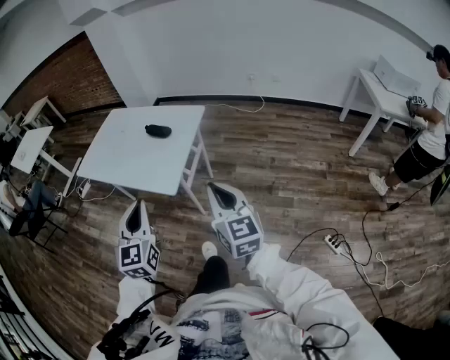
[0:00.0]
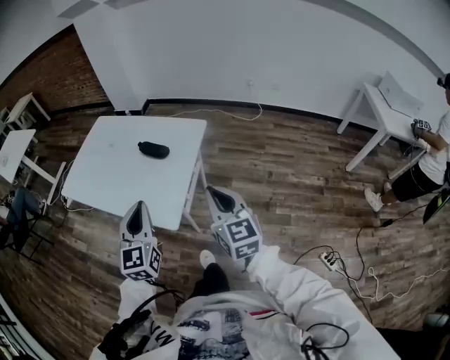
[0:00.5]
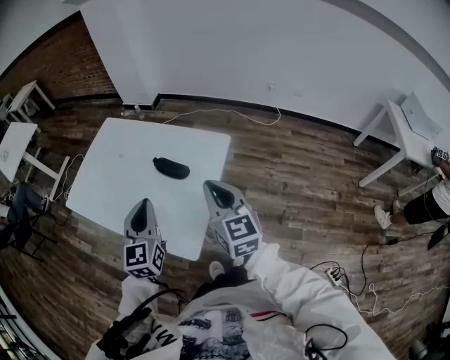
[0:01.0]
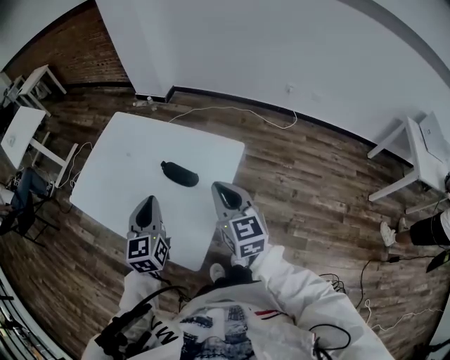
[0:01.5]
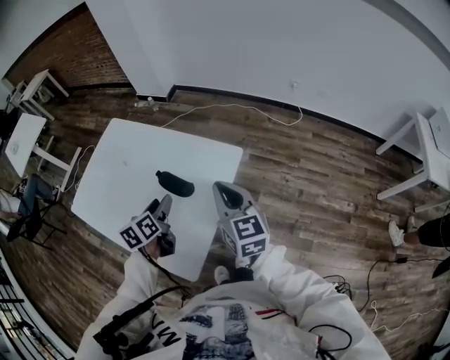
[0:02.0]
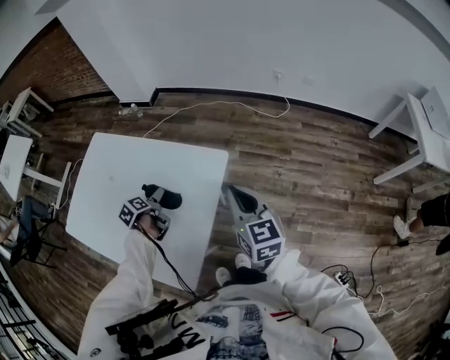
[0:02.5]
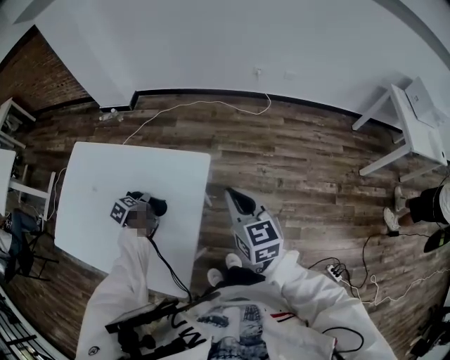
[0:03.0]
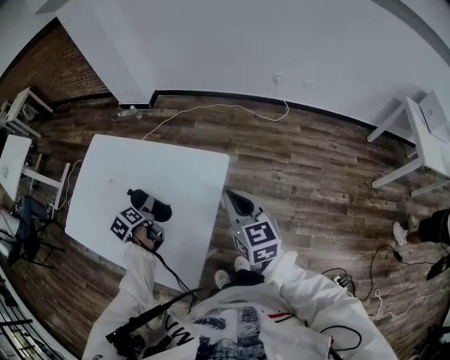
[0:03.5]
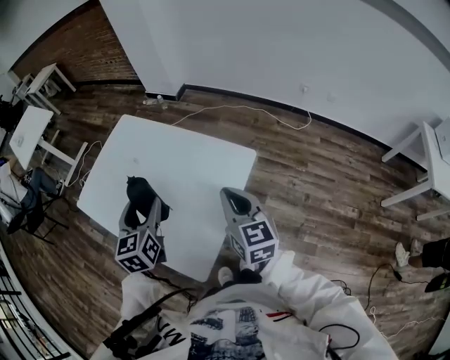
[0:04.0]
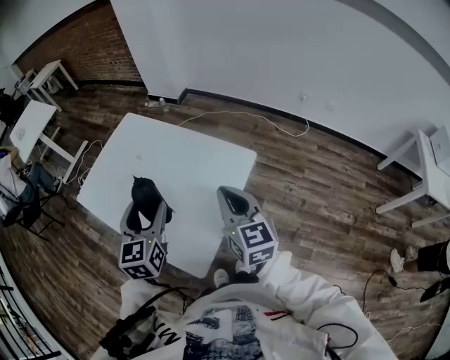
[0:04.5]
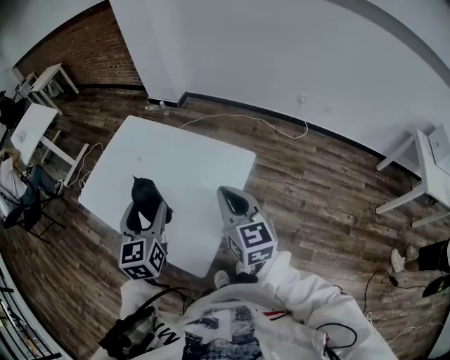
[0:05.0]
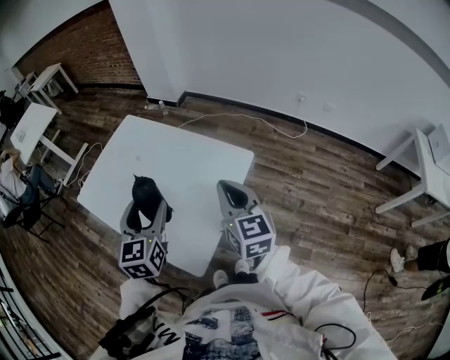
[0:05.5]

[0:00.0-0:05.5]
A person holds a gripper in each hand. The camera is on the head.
0:00.0 to 0:02.0: The pair of grippers is taken forward, some 50 cm. The left gripper rolls counterclockwise, seen from behind, by roughly 40 degrees, and opens its fingers.
0:02.0 to 0:03.5: The left gripper heads downward and forward, covering about 10 cm, and rotates approximately 20 degrees. The right gripper heads to the right, covering roughly 5 cm.
0:03.5 to 0:05.5: The right gripper heads to the left and upward, covering approximately 15 cm. Meanwhile the left gripper shifts approximately 25 cm upward and backward, and twists about 40 degrees clockwise, seen from behind.

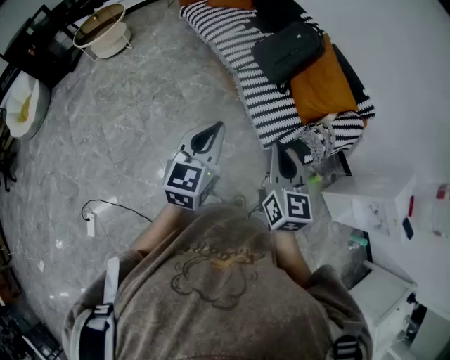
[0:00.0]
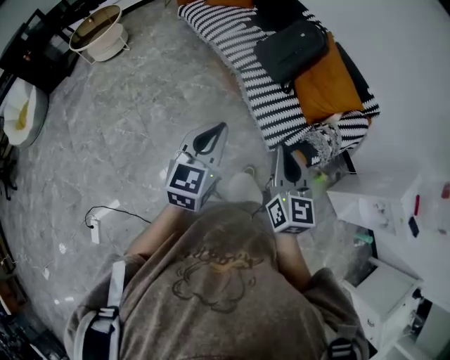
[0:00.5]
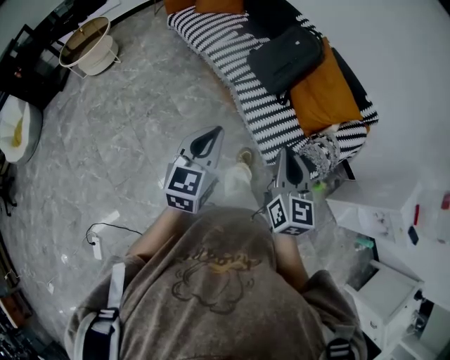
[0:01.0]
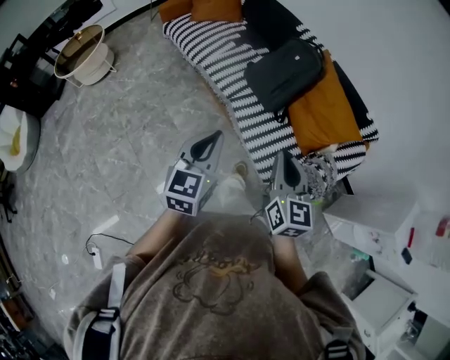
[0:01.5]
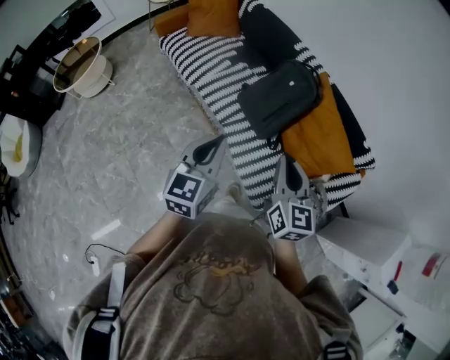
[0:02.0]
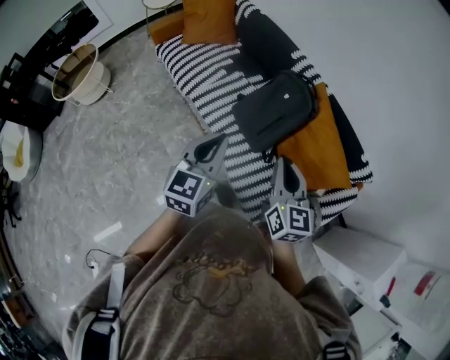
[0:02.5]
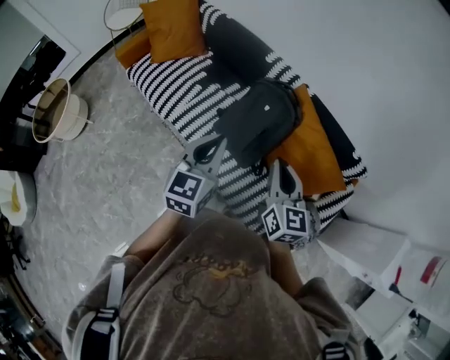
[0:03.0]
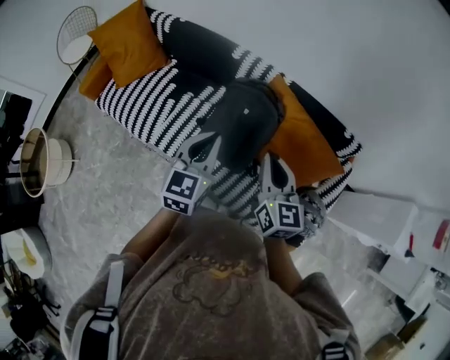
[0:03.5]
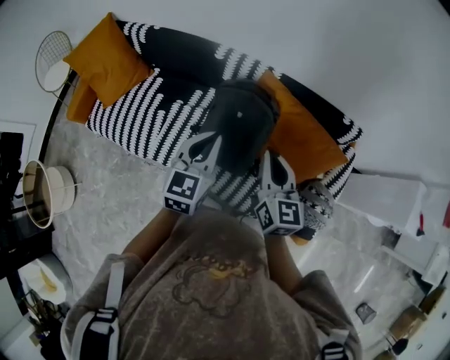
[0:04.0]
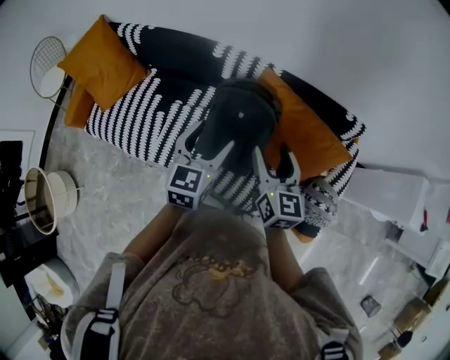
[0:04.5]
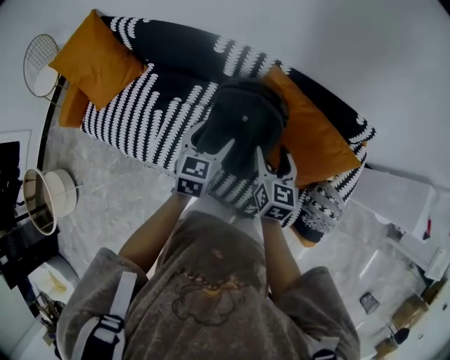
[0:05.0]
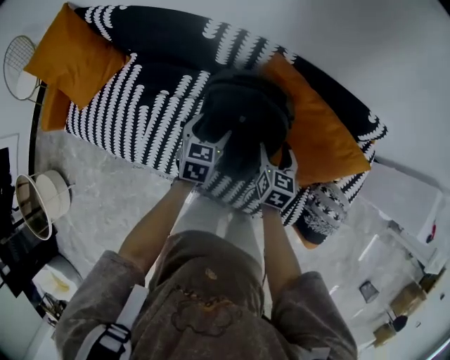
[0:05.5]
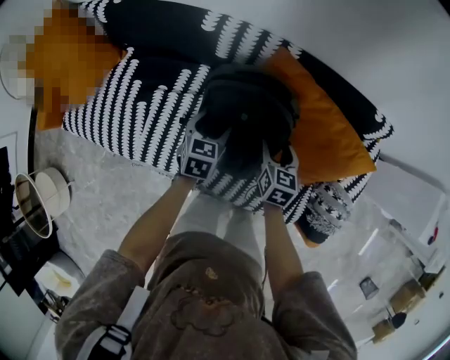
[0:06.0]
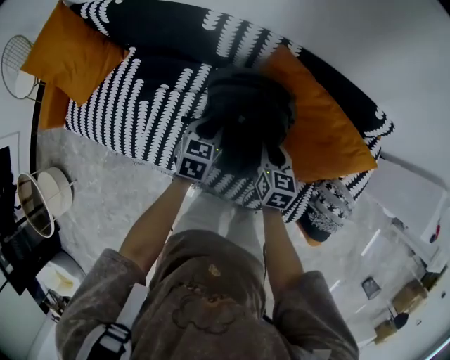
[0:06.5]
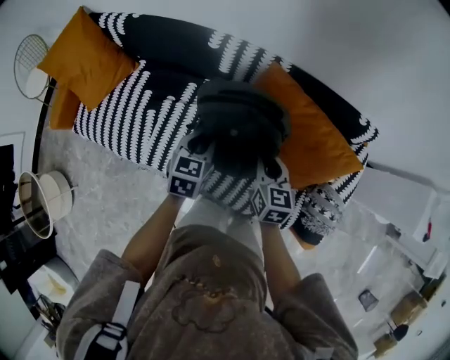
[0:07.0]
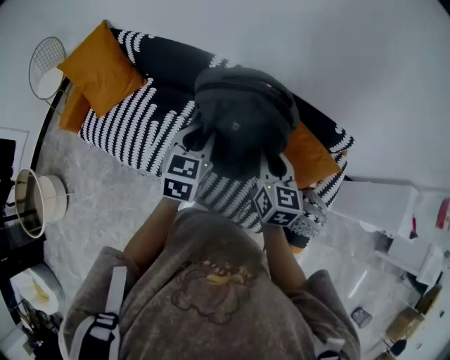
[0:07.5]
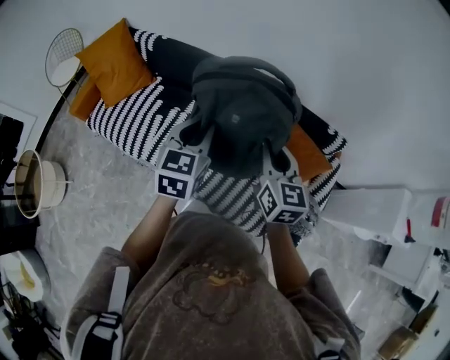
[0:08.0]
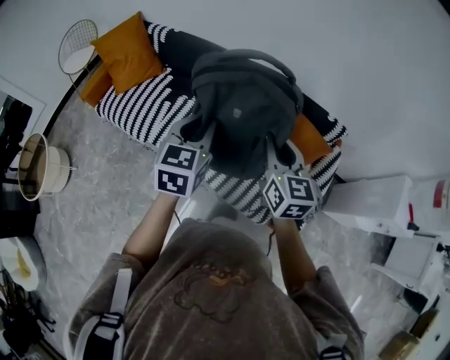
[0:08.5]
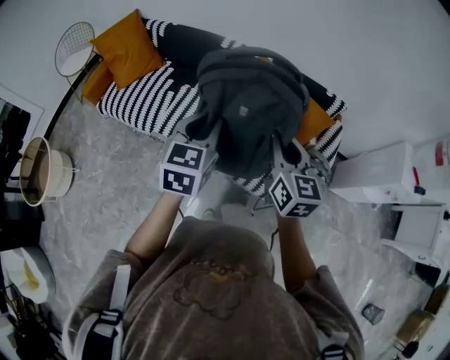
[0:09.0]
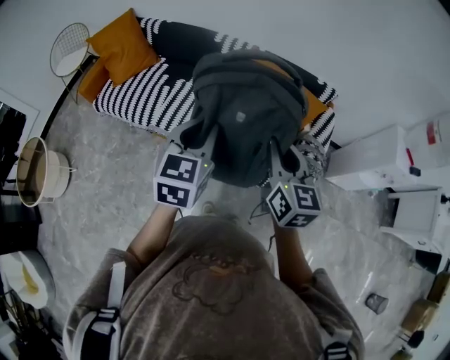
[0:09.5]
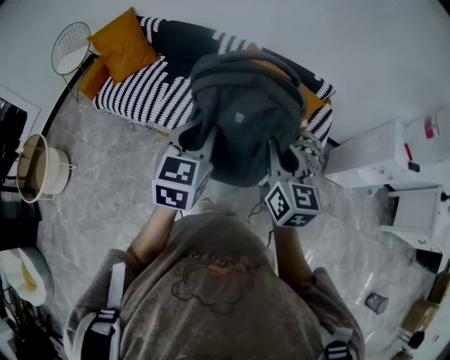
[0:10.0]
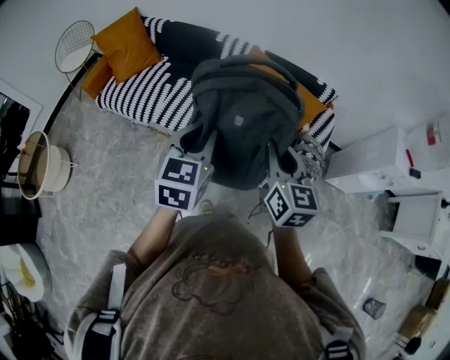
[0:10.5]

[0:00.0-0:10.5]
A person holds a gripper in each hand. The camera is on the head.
0:00.0 to 0:02.0: The two grippers go about 35 cm forward.
0:02.0 to 0:04.0: The left gripper changes place by approximately 35 cm, and turns by approximately 30 degrees, while the right gripper shifts by some 30 cm, and swivels some 30 degrees.
0:04.0 to 0:06.5: The grippers both shift downward by approximately 30 cm. The left gripper rotates roughly 30 degrees, and opens, then closes again. The right gripper swivels some 30 degrees, and opens and closes again.
0:06.5 to 0:08.5: Both grippers travel together upward and backward, approximately 40 cm. The right gripper changes its angle by roughly 30 degrees, while the left gripper rotates approximately 30 degrees.
0:08.5 to 0:10.5: Both grippers move backward, roughly 25 cm.

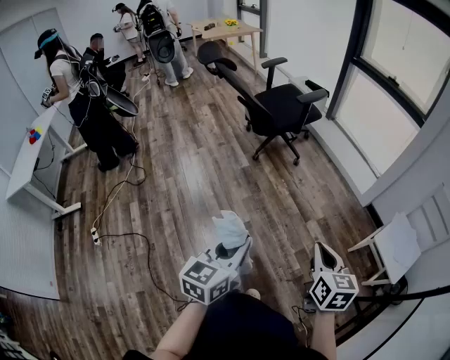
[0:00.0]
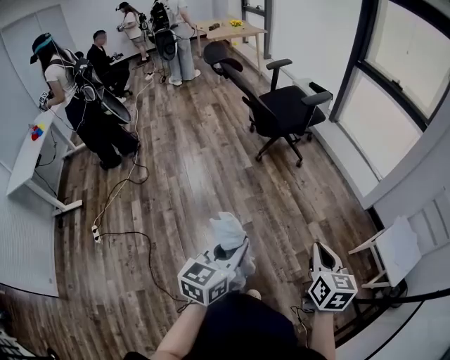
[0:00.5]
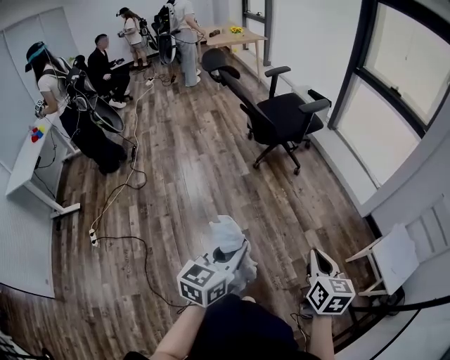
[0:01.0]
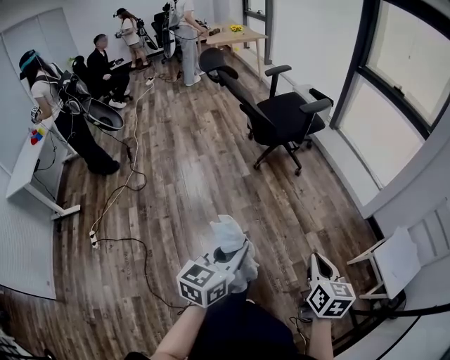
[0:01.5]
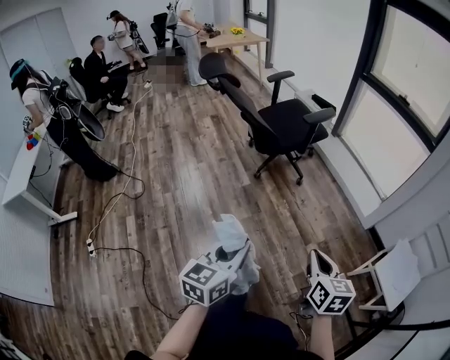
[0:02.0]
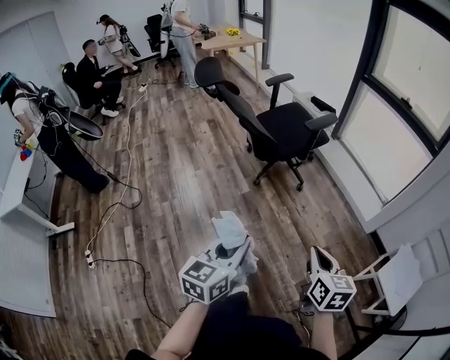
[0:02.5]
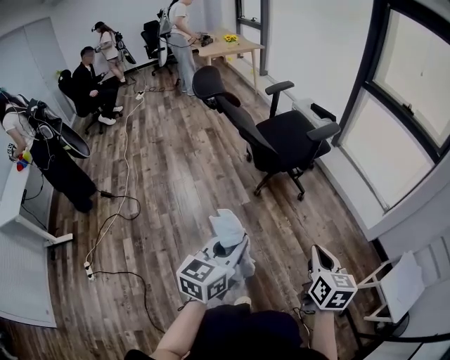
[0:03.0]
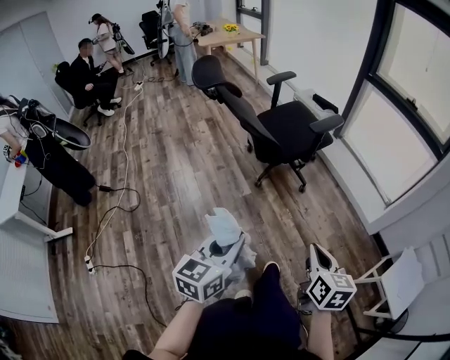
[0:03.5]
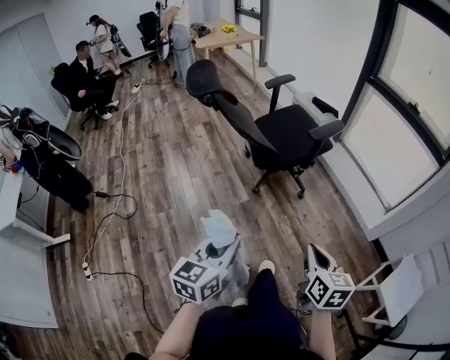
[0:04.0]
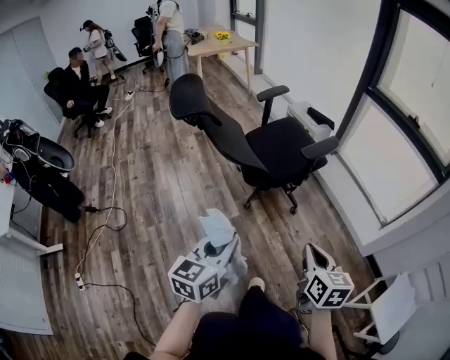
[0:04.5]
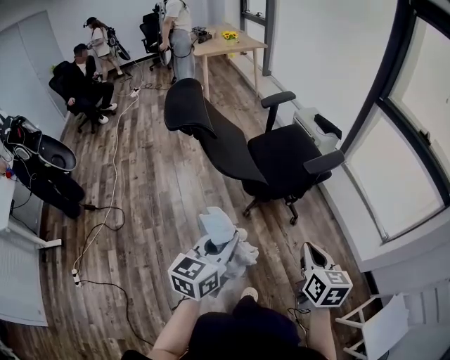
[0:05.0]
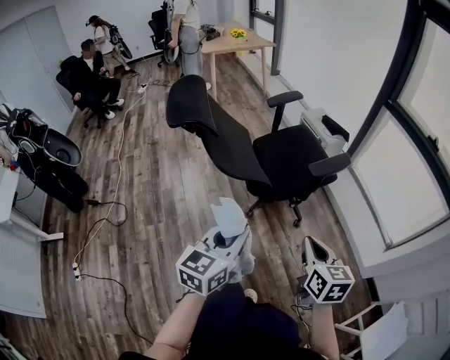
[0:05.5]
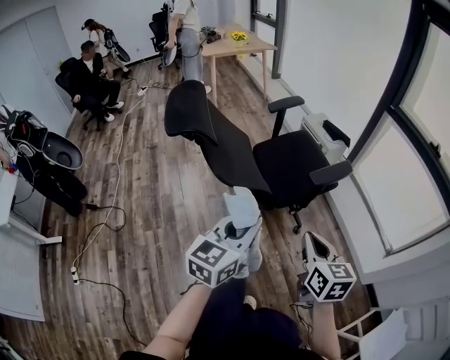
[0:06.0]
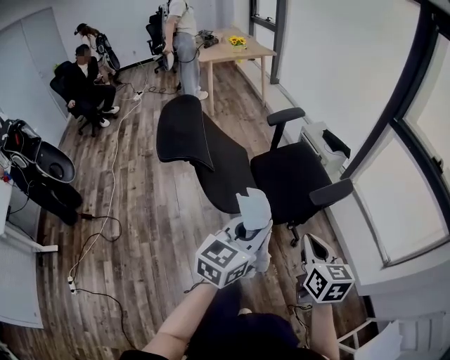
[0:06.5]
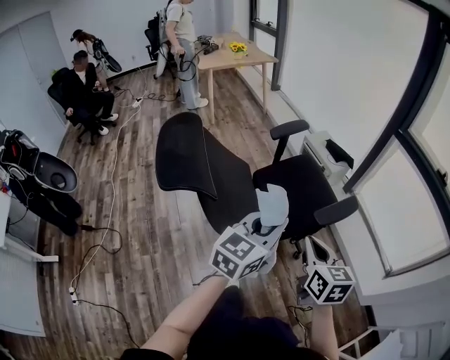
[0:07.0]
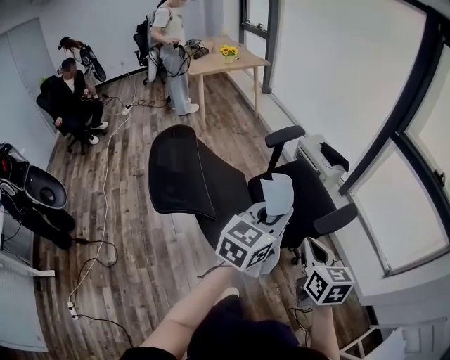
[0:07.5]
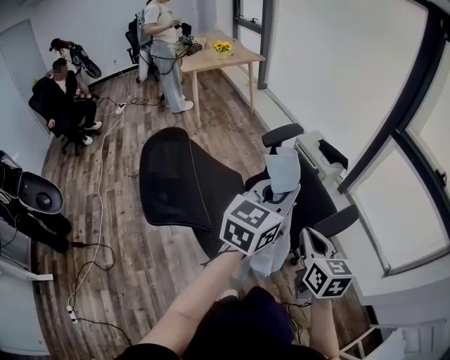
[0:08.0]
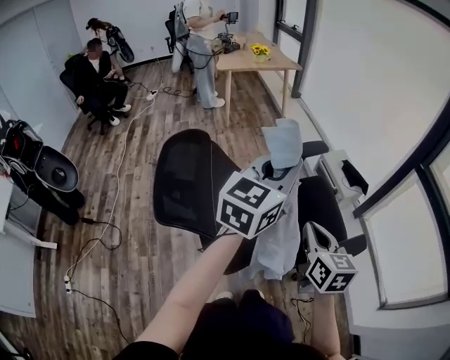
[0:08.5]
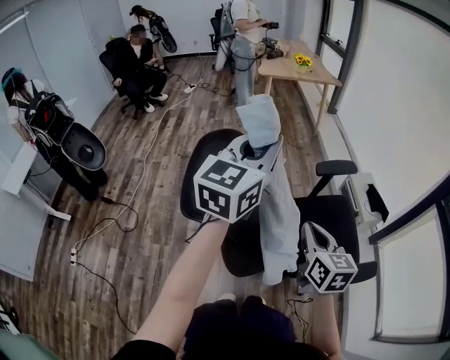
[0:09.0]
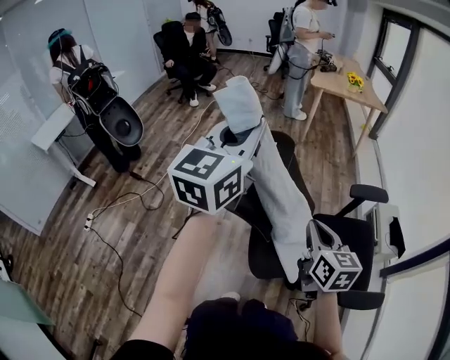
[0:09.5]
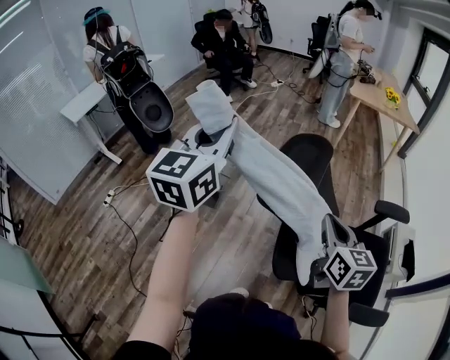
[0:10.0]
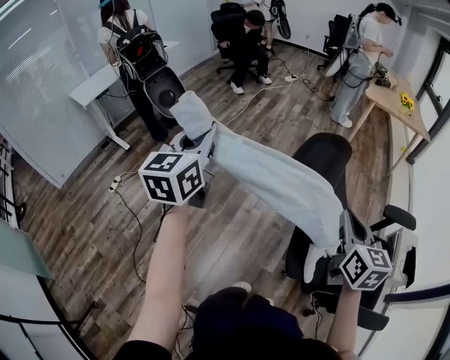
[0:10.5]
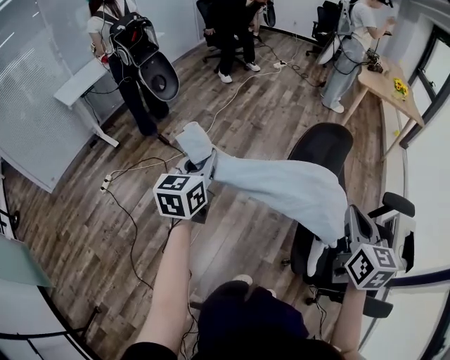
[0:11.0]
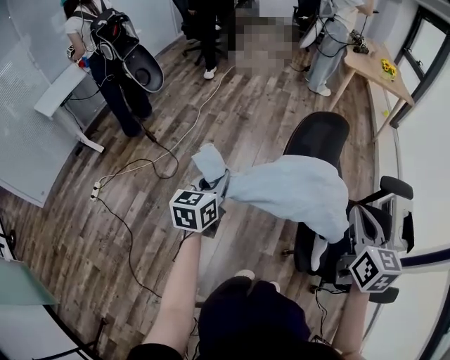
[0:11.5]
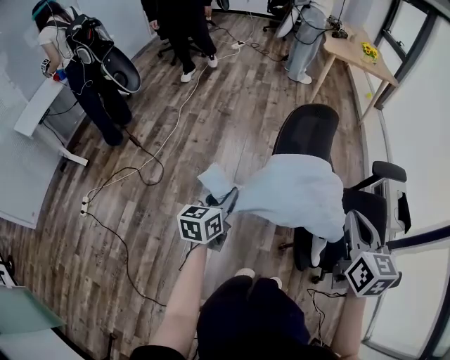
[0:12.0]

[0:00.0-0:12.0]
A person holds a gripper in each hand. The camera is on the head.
0:00.0 to 0:02.0: The two grippers go some 15 cm forward.
0:02.0 to 0:04.0: Both grippers move forward and to the left, some 20 cm.
0:04.0 to 0:06.0: Both grippers move forward, about 30 cm.
0:06.0 to 0:08.0: The left gripper heads forward, covering roughly 35 cm, while the right gripper shifts about 30 cm forward and to the left.
0:08.0 to 0:10.0: The left gripper moves approximately 50 cm, and turns by approximately 70 degrees; the right gripper ends up roughly 25 cm from where it was, and rotates some 50 degrees.
0:10.0 to 0:12.0: The left gripper goes about 35 cm downward, and changes its angle by some 40 degrees.
